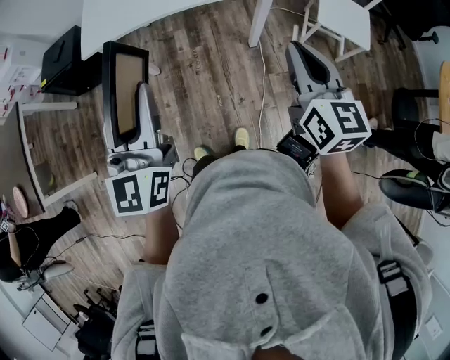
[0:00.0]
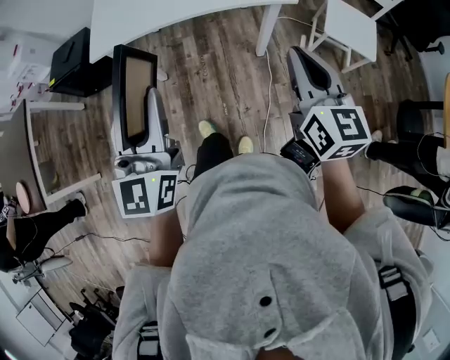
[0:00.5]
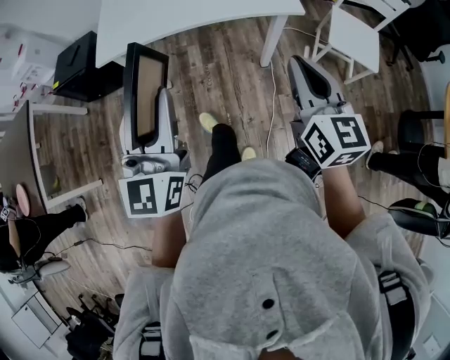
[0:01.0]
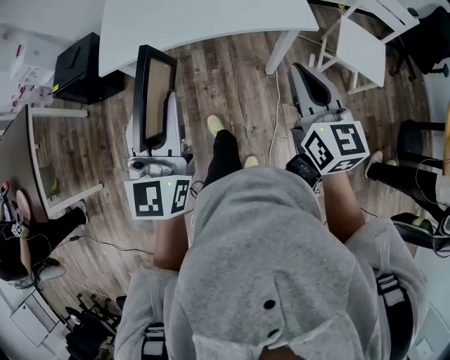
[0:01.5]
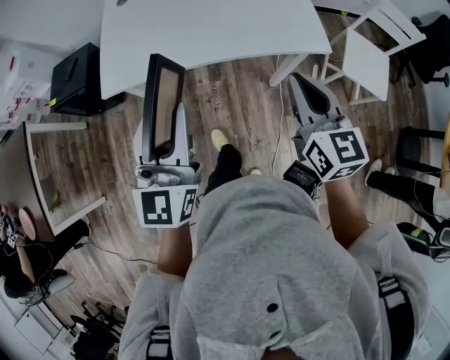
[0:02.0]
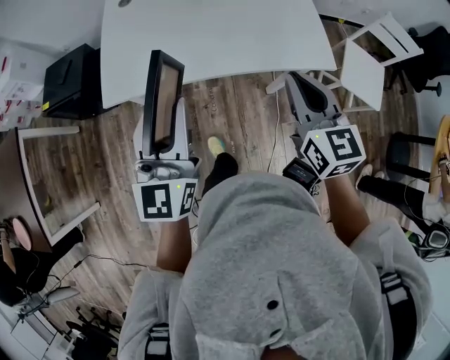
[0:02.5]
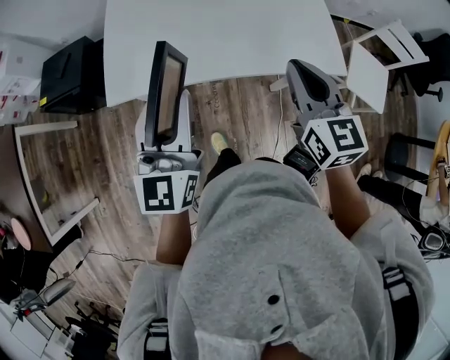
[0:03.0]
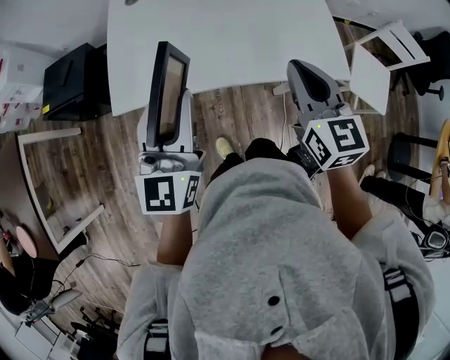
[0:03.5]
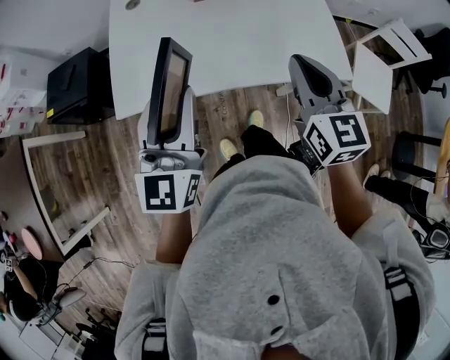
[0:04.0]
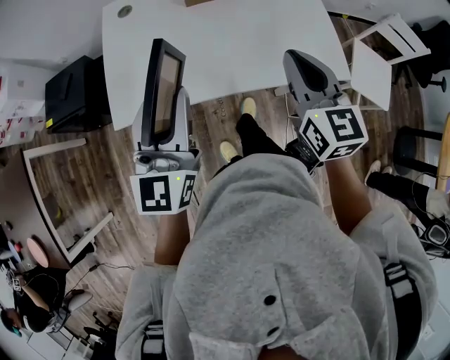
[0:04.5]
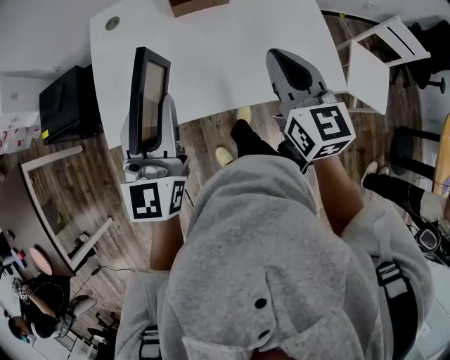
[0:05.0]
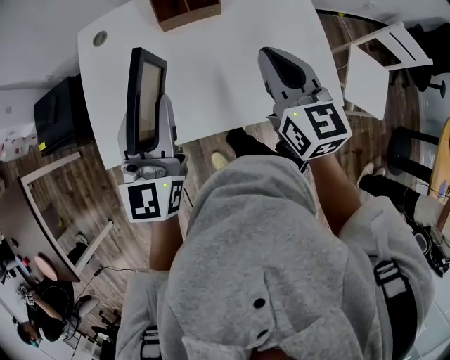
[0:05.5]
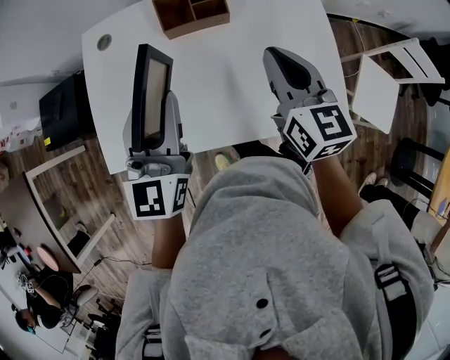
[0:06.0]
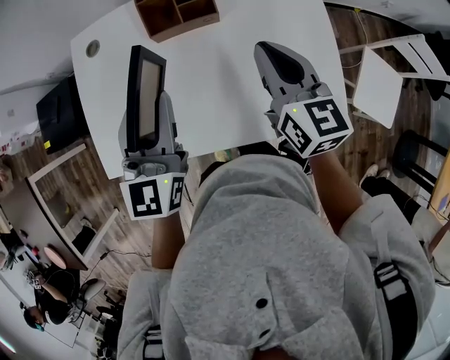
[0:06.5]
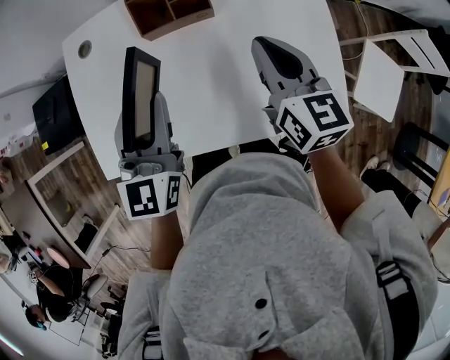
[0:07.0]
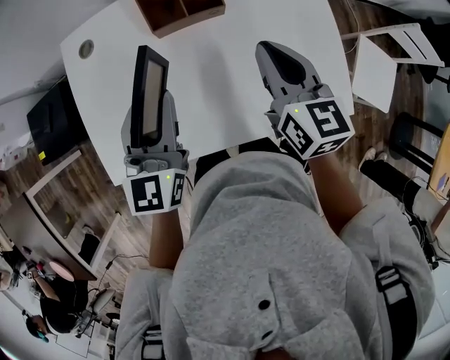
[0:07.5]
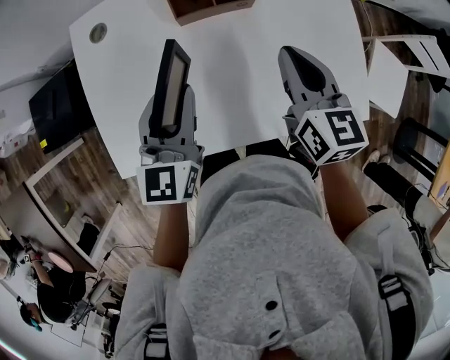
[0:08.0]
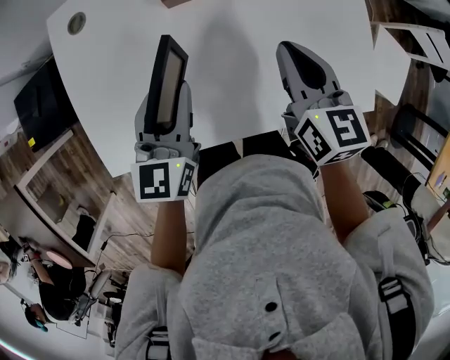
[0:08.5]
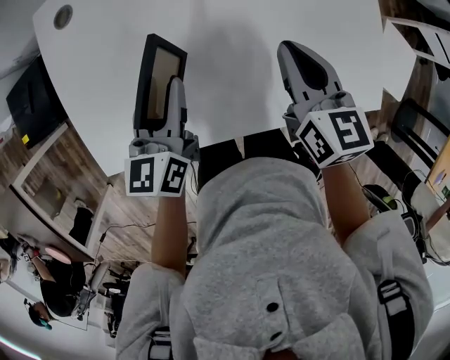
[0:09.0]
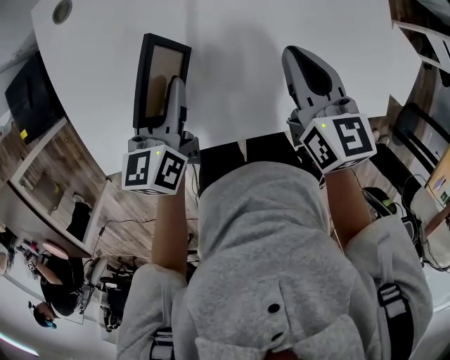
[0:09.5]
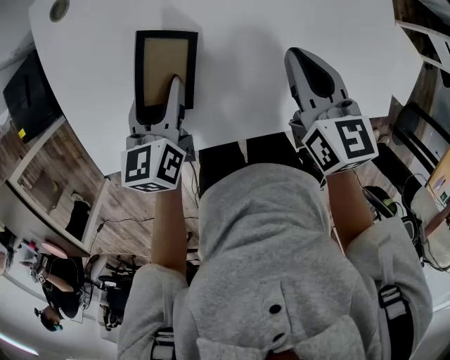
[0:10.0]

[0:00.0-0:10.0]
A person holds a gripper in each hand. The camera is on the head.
0:00.0 to 0:02.0: The right gripper moves forward and to the left, about 20 cm. Meanwhile the left gripper shifts about 20 cm forward.
0:02.0 to 0:04.0: The grippers both shift forward and to the left by some 15 cm.
0:04.0 to 0:06.0: Both grippers travel together forward, approximately 20 cm.
0:06.0 to 0:08.0: The left gripper travels downward and forward by approximately 10 cm; the right gripper shifts roughly 5 cm downward.
0:08.0 to 0:10.0: The right gripper moves downward, about 10 cm; the left gripper heads downward, covering about 15 cm, and changes its angle by about 30 degrees.

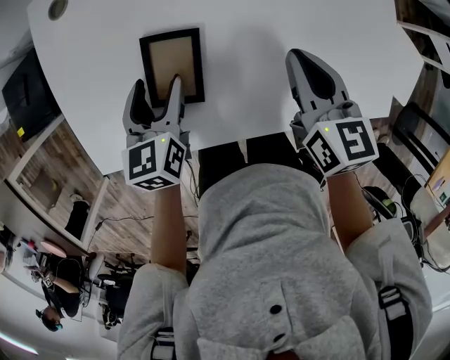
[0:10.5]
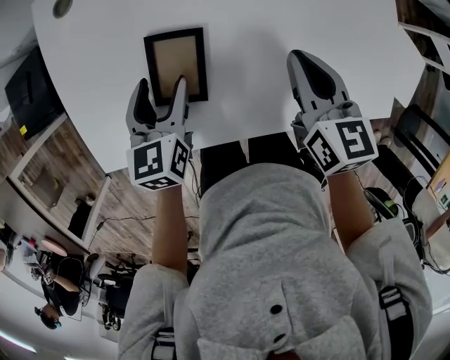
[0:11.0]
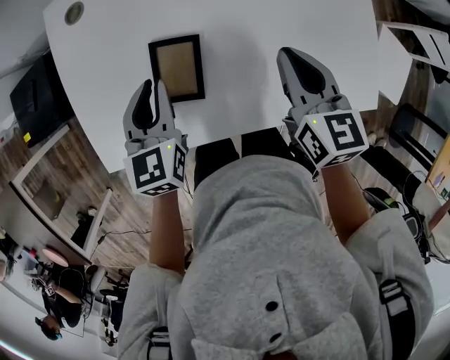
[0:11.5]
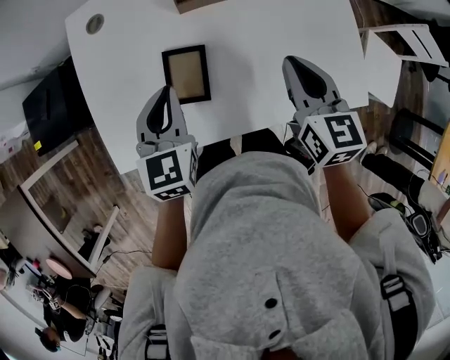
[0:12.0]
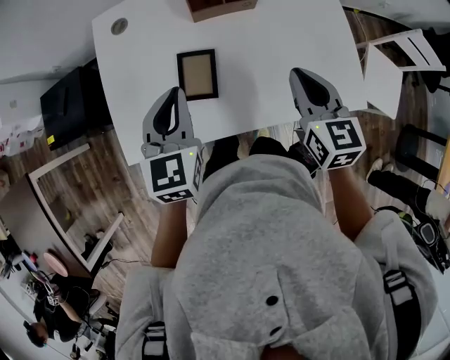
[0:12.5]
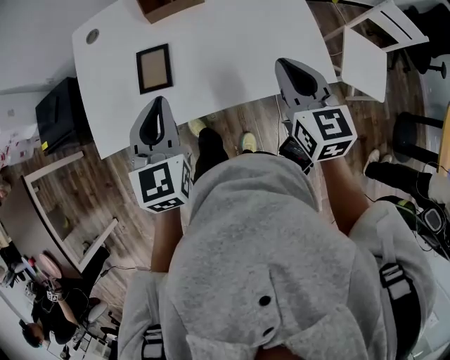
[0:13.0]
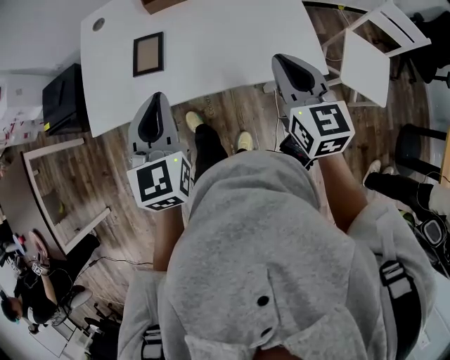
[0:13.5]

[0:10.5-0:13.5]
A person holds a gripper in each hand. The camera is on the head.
0:10.5 to 0:12.0: The two grippers go about 10 cm upward. The left gripper closes up.
0:12.0 to 0:13.5: The left gripper shifts about 25 cm backward, to the right and upward. Meanwhile the right gripper is displaced backward and to the right by roughly 20 cm.

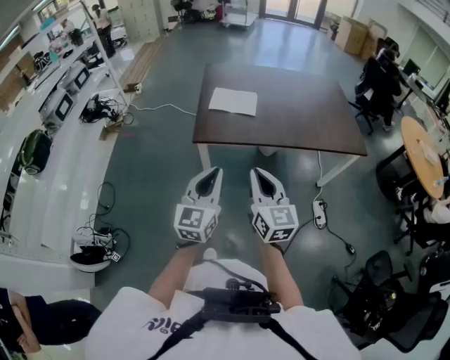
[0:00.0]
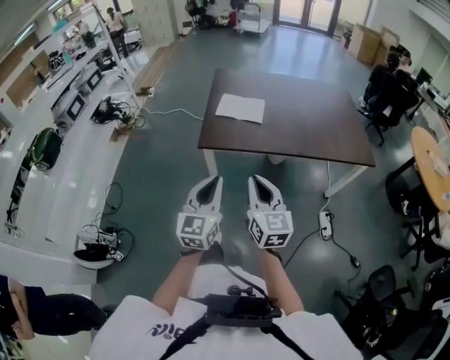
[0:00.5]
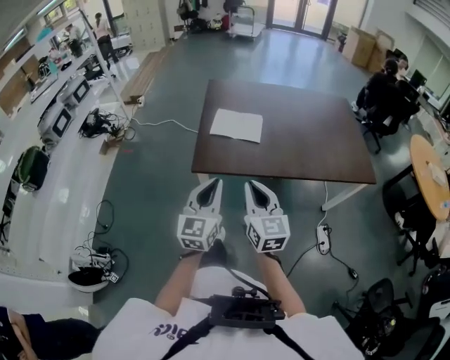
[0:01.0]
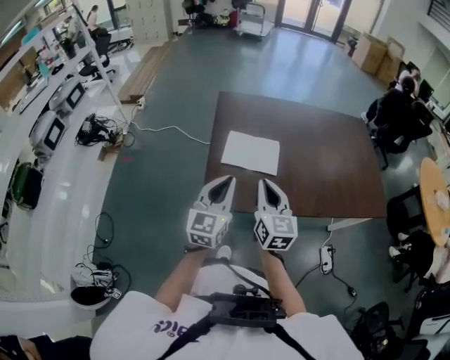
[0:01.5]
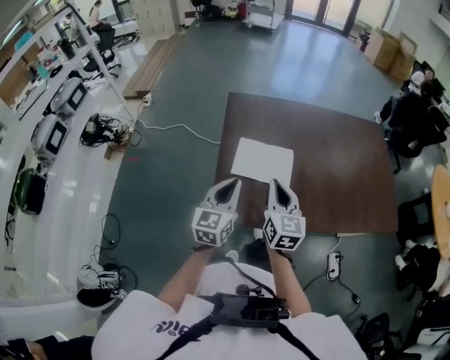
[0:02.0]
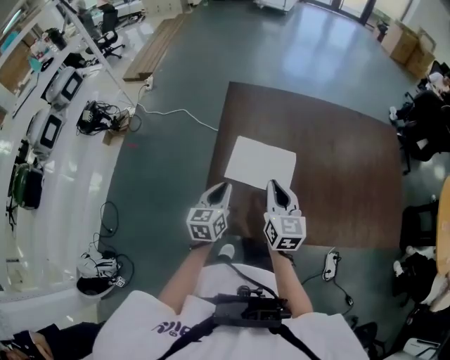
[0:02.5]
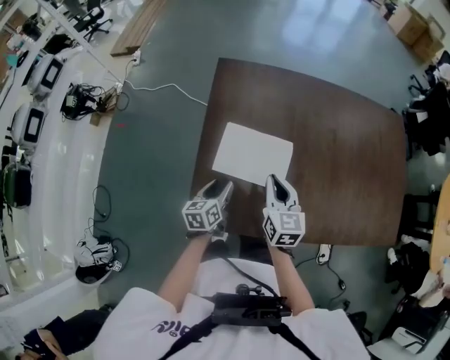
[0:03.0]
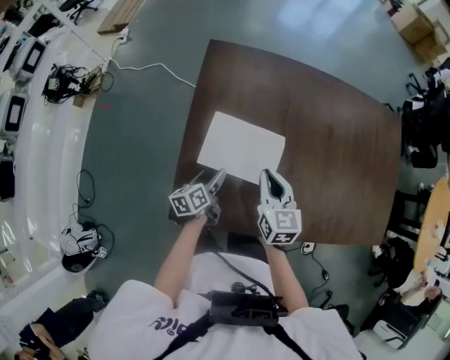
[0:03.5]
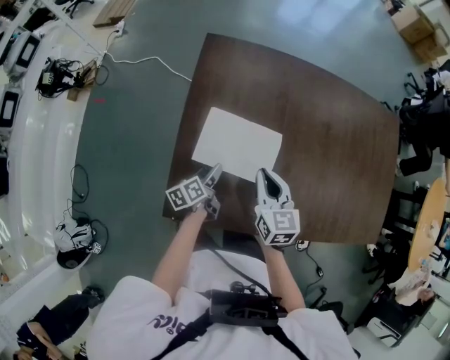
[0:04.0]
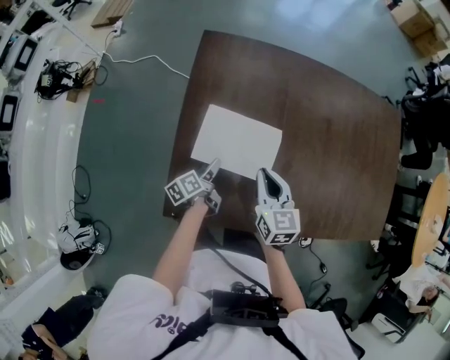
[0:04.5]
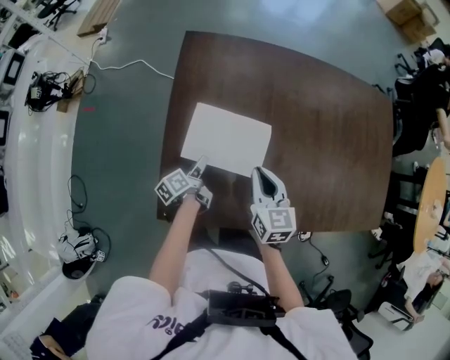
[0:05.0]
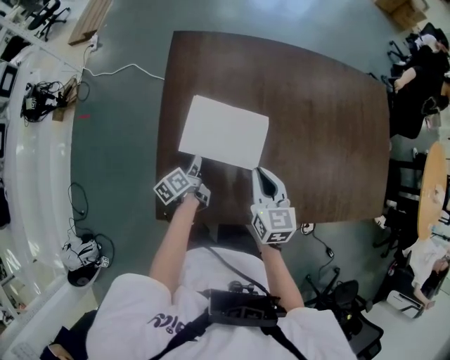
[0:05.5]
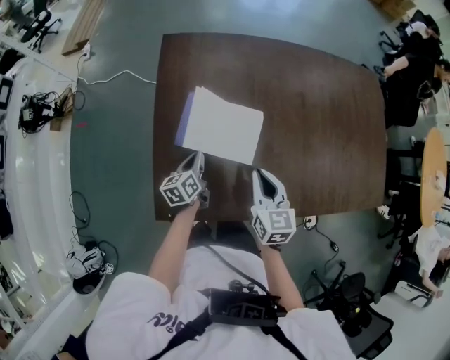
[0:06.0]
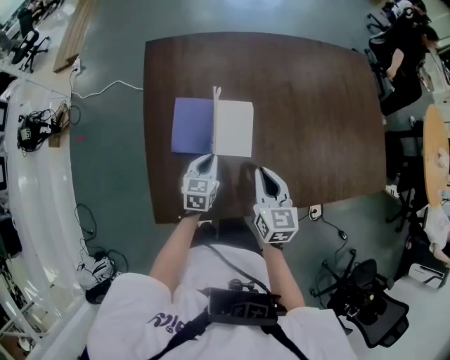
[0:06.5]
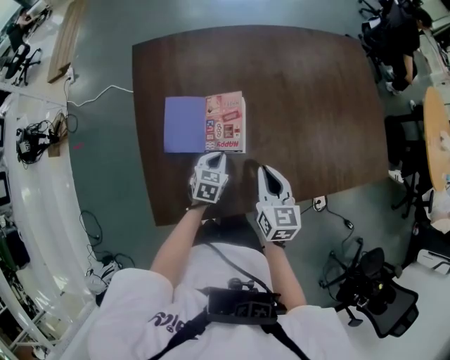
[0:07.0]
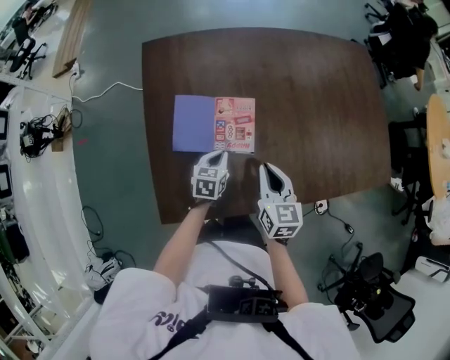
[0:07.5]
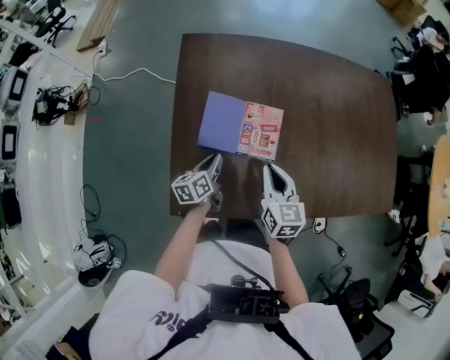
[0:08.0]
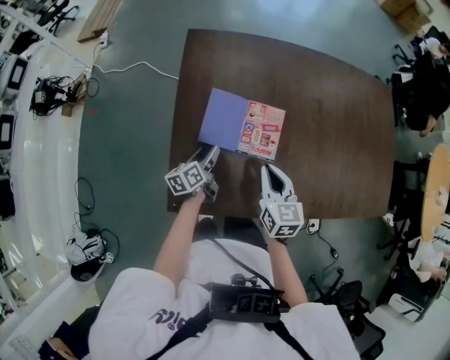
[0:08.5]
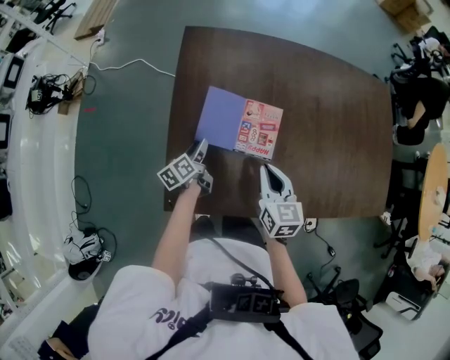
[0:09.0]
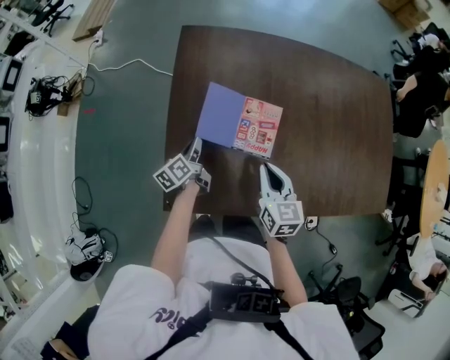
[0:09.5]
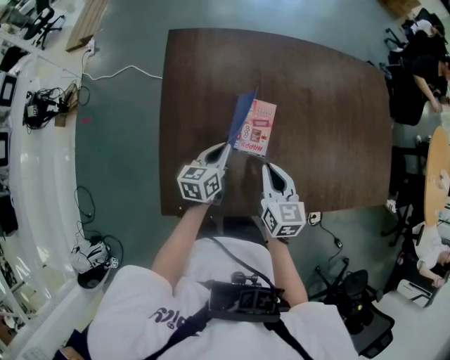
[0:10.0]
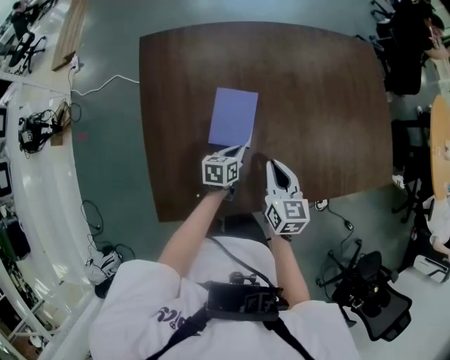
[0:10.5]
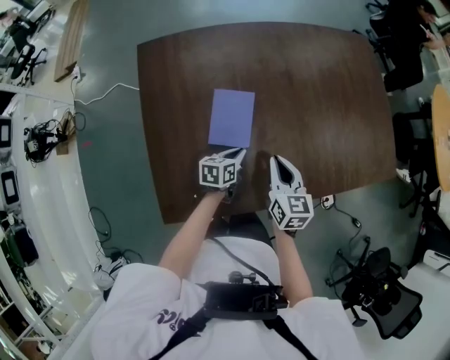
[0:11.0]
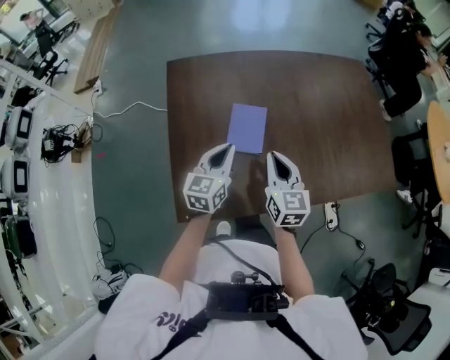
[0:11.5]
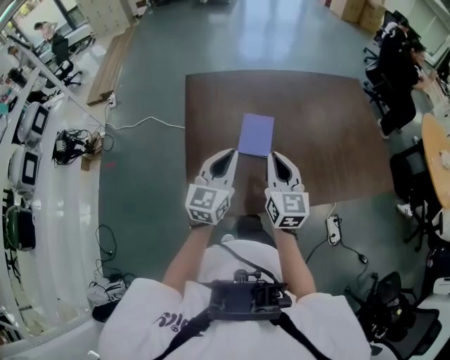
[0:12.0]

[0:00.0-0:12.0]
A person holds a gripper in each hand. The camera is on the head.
0:00.0 to 0:02.0: The two grippers travel together, forward, approximately 50 cm.
0:02.0 to 0:04.0: The right gripper shifts about 25 cm forward and downward, and changes its angle by approximately 20 degrees, while the left gripper goes about 35 cm downward and forward, rolls counterclockwise, seen from behind, by some 60 degrees, and opens up.
0:04.0 to 0:06.0: The right gripper goes about 10 cm to the right and backward; the left gripper rotates some 20 degrees, and closes up.
0:06.0 to 0:08.0: The left gripper travels to the right and back again, roughly 15 cm each way; the right gripper reaches some 10 cm to the right, then returns.
0:08.0 to 0:10.0: The left gripper moves to the right and upward, about 10 cm, and opens, then closes once more.
0:10.0 to 0:12.0: Both grippers travel together upward and backward, approximately 20 cm. The left gripper turns by roughly 40 degrees; the right gripper swivels some 20 degrees.

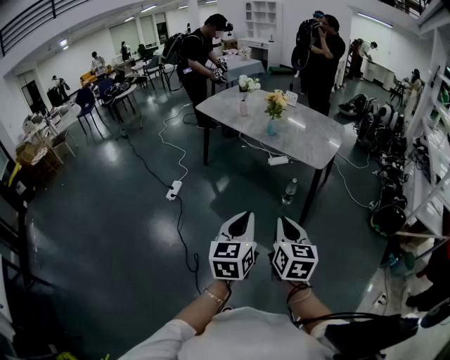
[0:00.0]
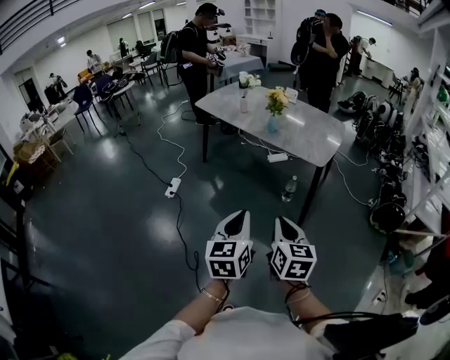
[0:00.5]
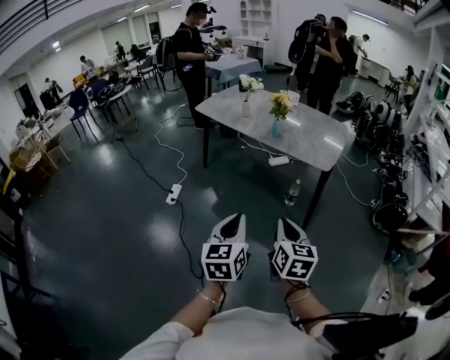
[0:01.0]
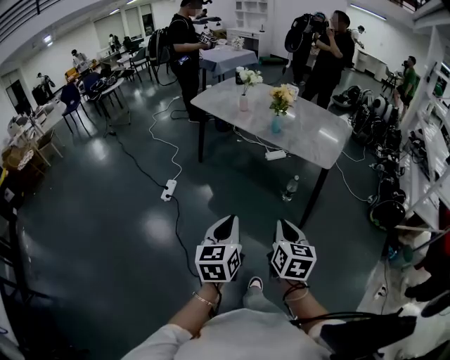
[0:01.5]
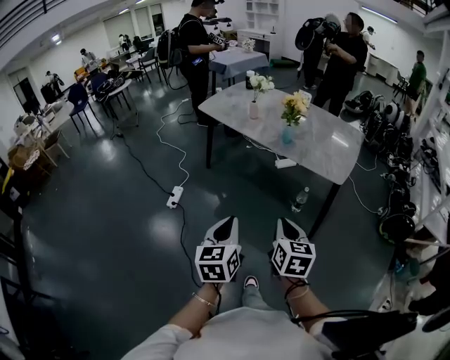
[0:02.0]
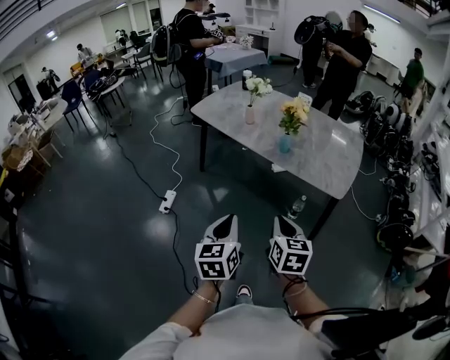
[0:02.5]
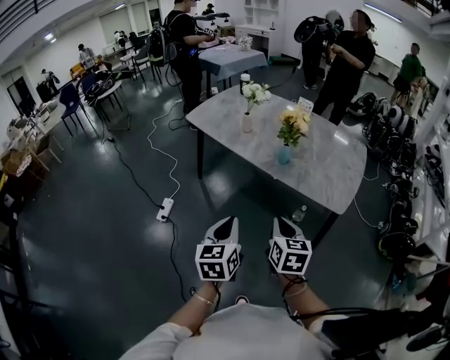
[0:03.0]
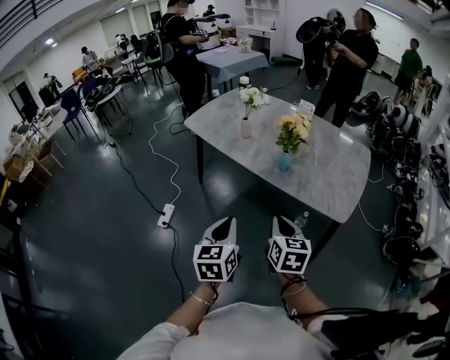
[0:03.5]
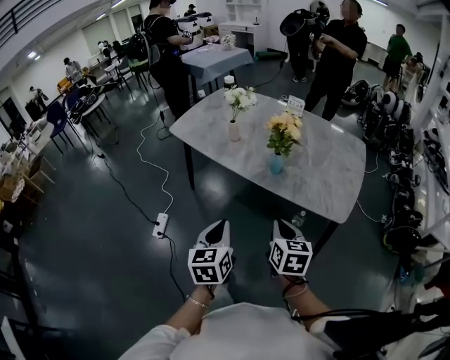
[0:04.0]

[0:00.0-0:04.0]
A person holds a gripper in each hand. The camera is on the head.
0:00.0 to 0:02.0: Both grippers travel together forward and to the left, roughly 20 cm.
0:02.0 to 0:04.0: The grippers both shift forward by approximately 30 cm.
